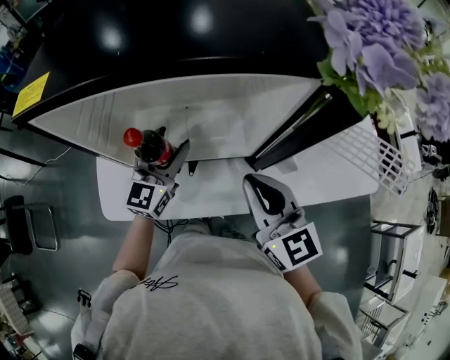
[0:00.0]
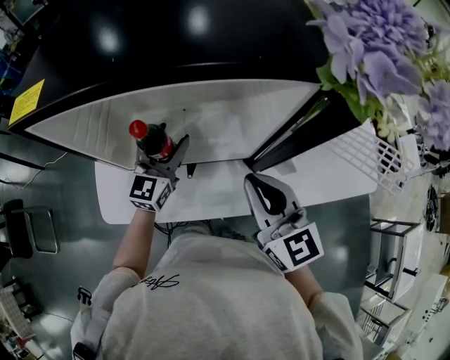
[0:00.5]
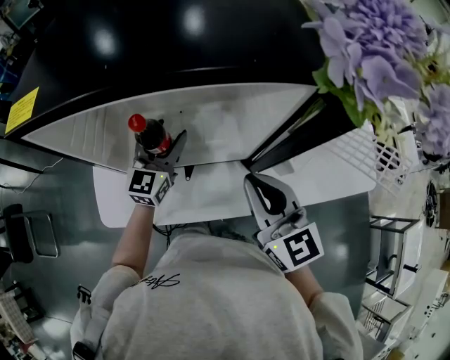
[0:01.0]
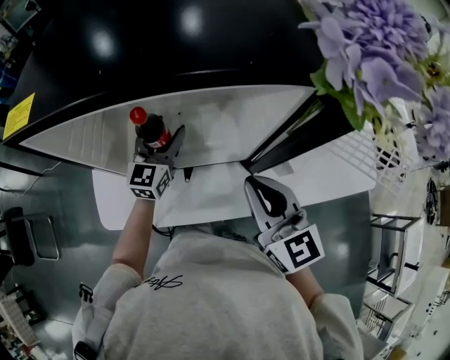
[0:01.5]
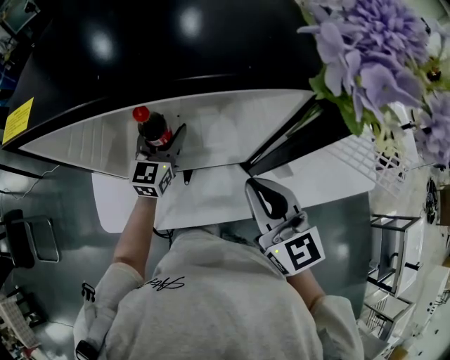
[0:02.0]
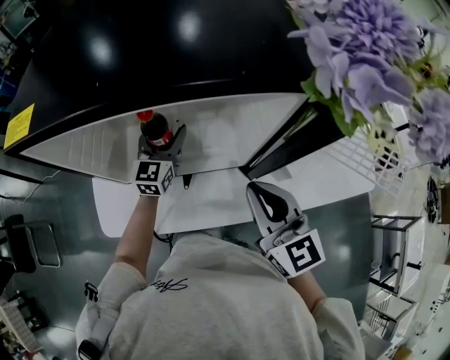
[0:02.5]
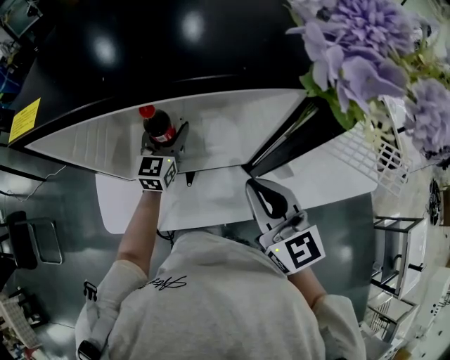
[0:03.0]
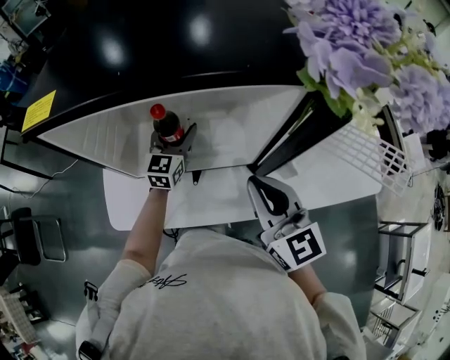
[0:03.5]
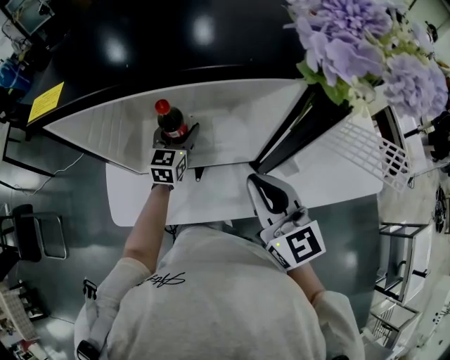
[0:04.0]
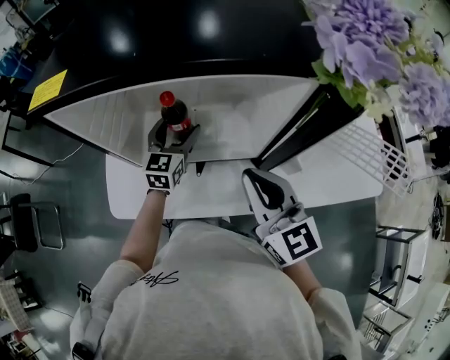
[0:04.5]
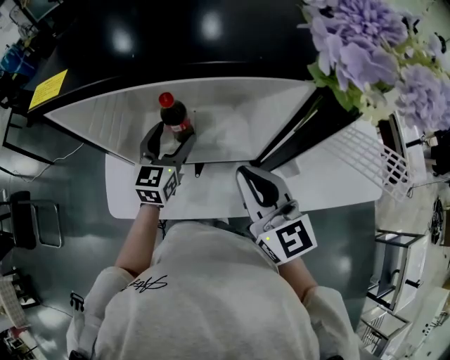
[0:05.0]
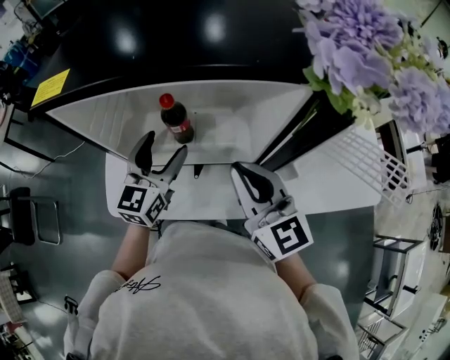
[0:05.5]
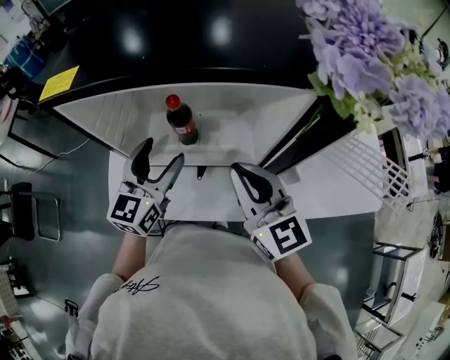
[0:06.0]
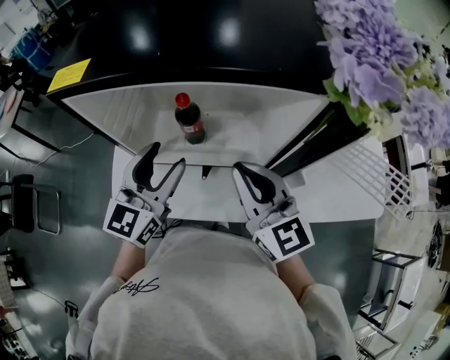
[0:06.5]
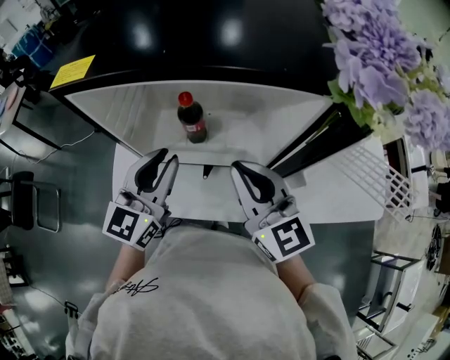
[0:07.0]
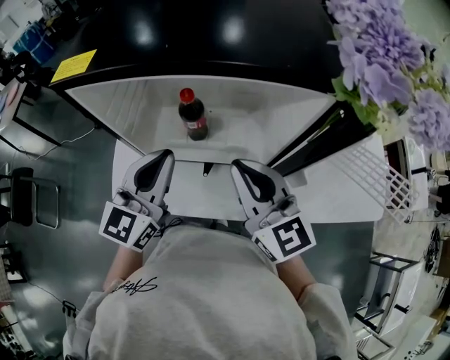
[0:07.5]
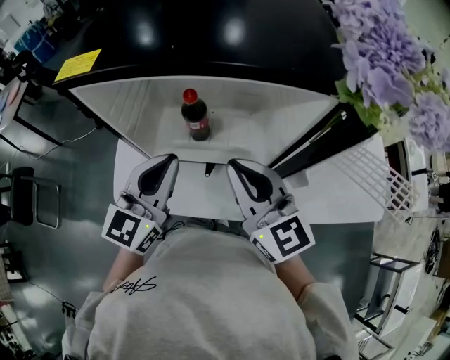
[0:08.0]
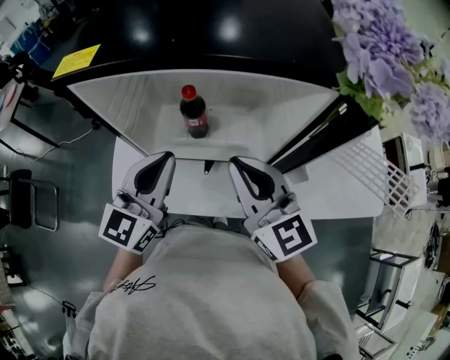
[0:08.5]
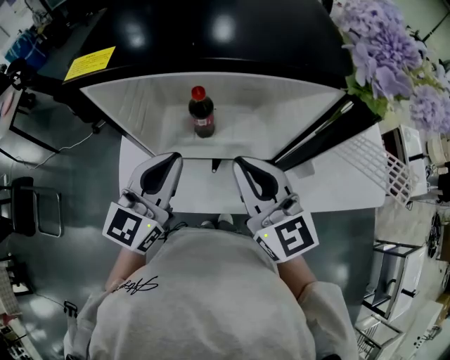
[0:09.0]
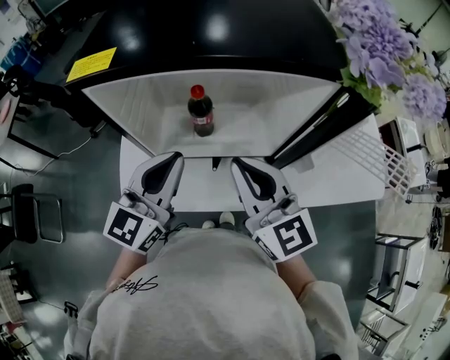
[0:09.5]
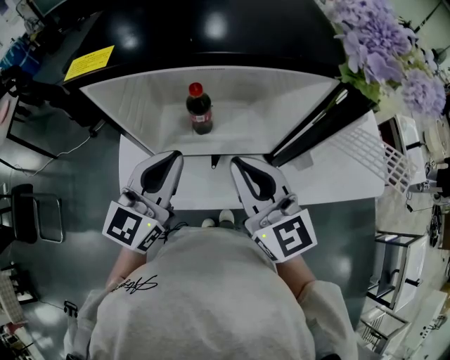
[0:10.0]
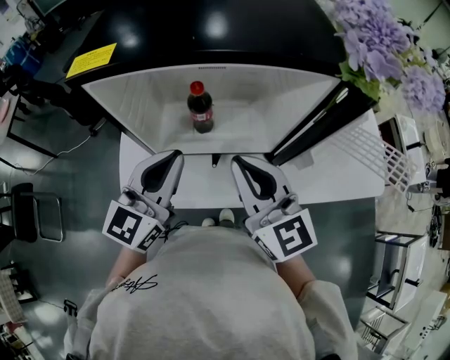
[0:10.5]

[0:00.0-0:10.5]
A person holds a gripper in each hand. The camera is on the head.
0.0 to 2.0 s: The left gripper heads forward, covering approximately 10 cm.
2.0 to 4.0 s: There are only small adjustments of the grippers.
4.0 to 6.5 s: The left gripper shifts some 20 cm upward and backward. Meanwhile the right gripper changes place by roughly 5 cm.
6.5 to 8.5 s: The left gripper closes up.
8.5 to 10.5 s: There are only small adjustments of the grippers.

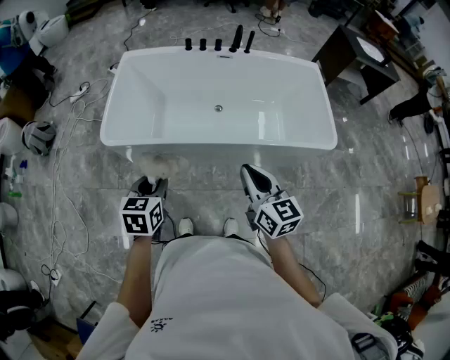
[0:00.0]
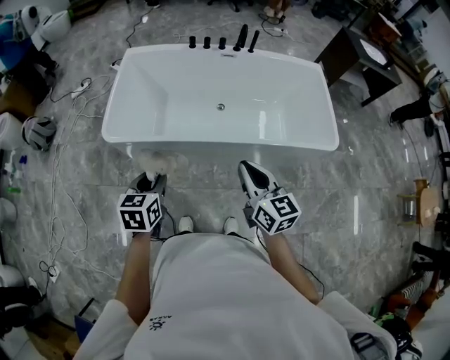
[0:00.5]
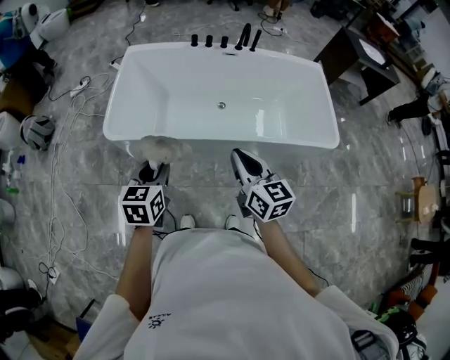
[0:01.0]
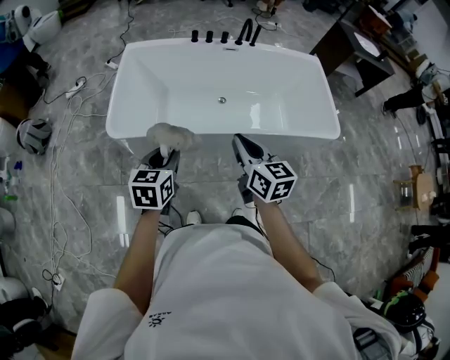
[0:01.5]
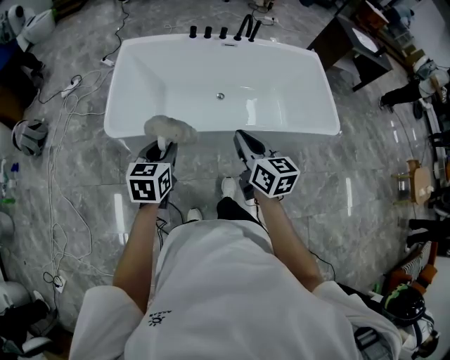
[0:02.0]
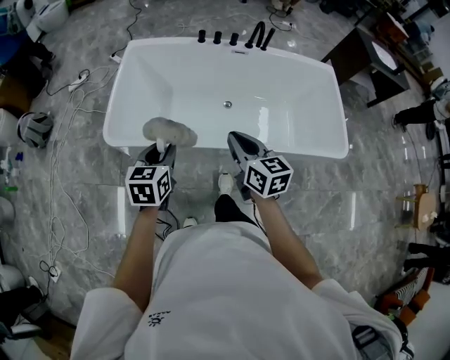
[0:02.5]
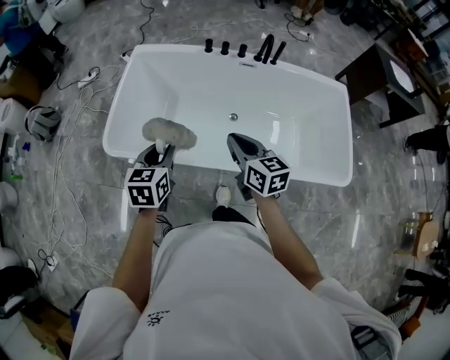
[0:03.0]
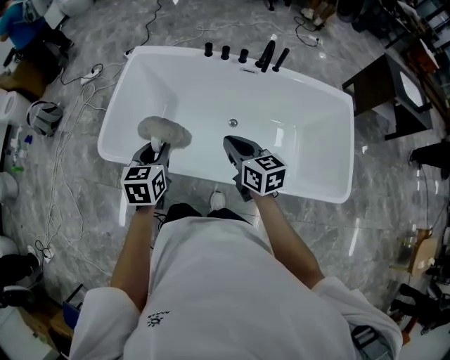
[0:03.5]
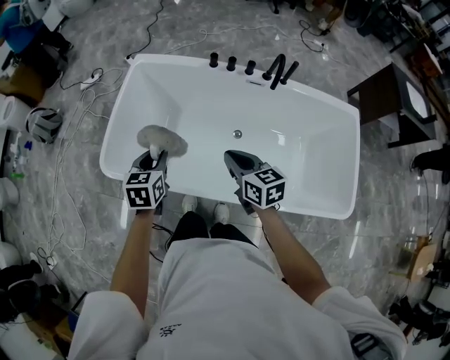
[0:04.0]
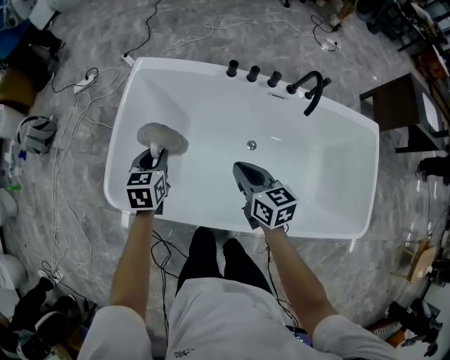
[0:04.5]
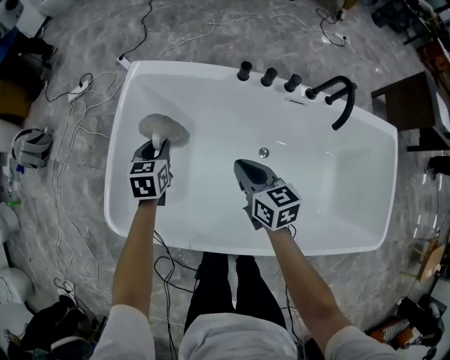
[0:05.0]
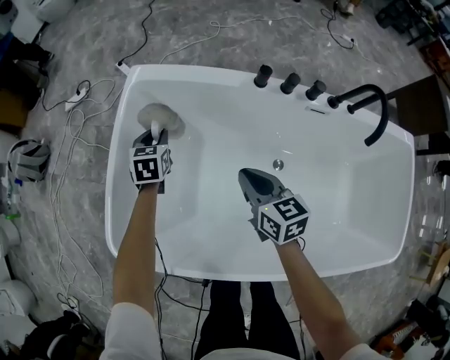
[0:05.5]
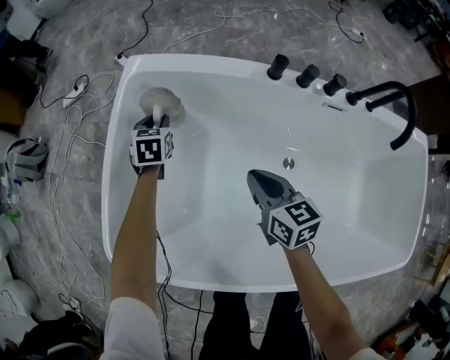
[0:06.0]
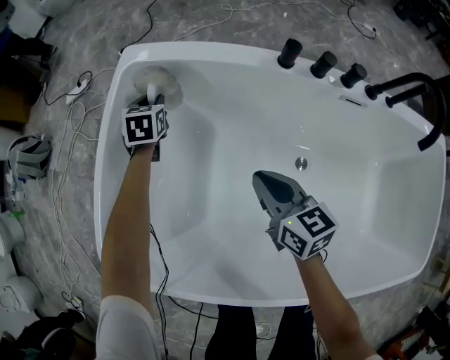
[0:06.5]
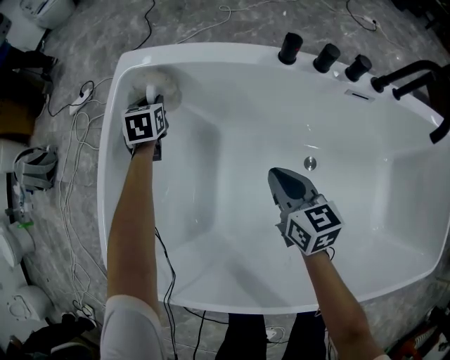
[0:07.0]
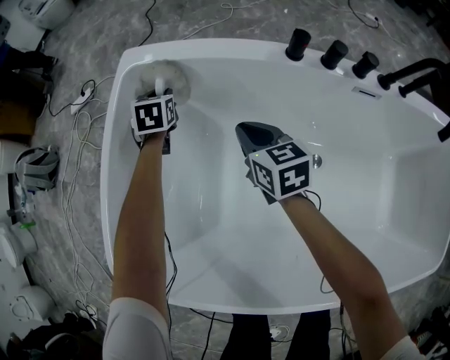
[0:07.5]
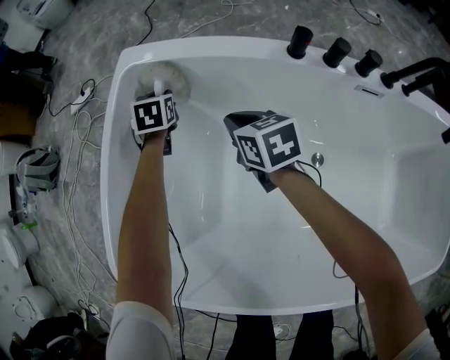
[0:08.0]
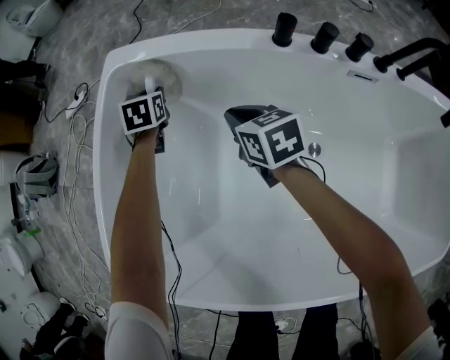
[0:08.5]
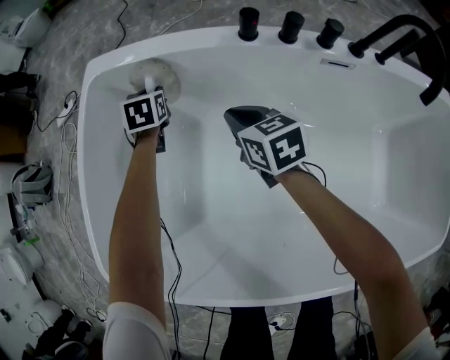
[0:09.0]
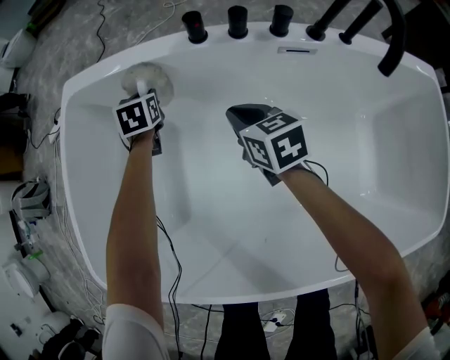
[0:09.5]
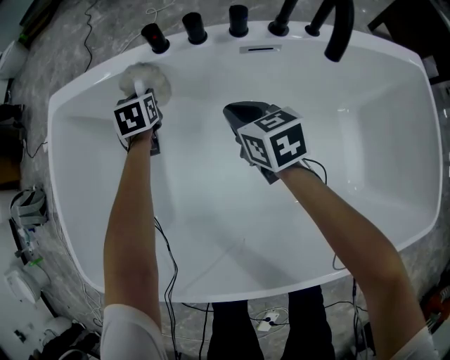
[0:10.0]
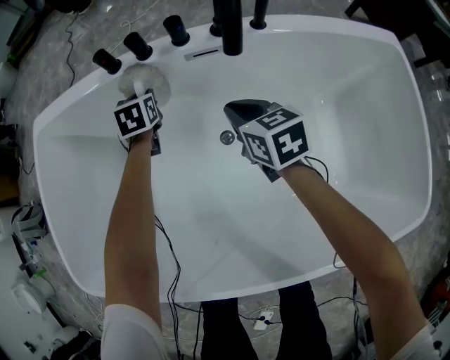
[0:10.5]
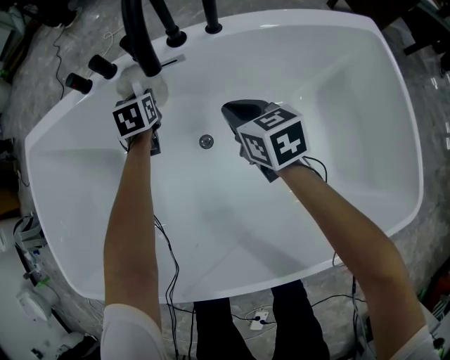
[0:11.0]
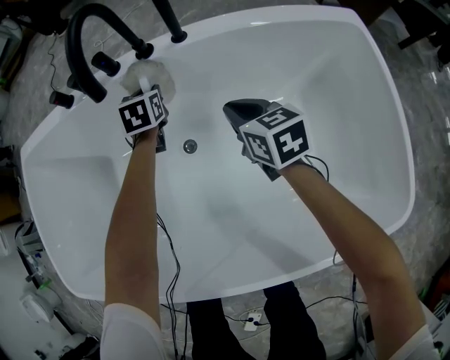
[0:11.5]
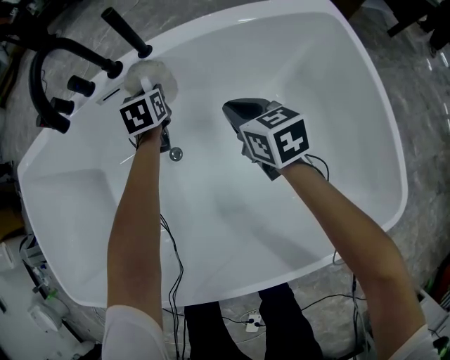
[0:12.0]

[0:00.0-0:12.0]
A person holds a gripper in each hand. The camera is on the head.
0.0 to 2.0 s: Both grippers travel together to the left and forward, approximately 10 cm.
2.0 to 4.0 s: Both grippers travel together forward, about 25 cm. The right gripper rotates about 30 degrees; the left gripper changes its angle by approximately 20 degrees.
4.0 to 6.0 s: Both grippers travel together forward and downward, some 50 cm.
6.0 to 8.0 s: The left gripper is displaced forward and downward by some 10 cm; the right gripper goes some 20 cm forward and downward.
8.0 to 10.0 s: Both grippers move to the right and backward, roughly 30 cm.
10.0 to 12.0 s: Both grippers travel together to the right, roughly 40 cm.

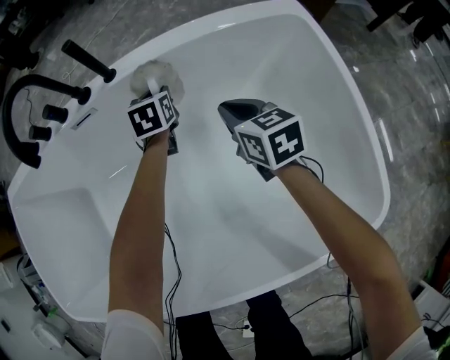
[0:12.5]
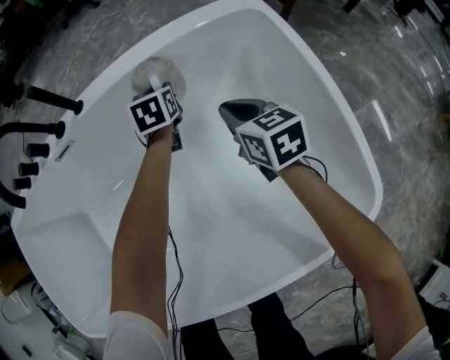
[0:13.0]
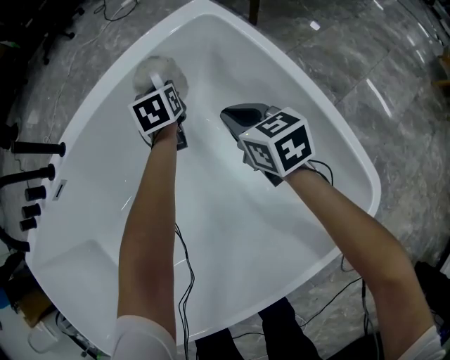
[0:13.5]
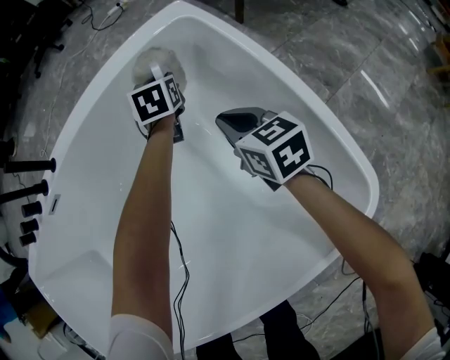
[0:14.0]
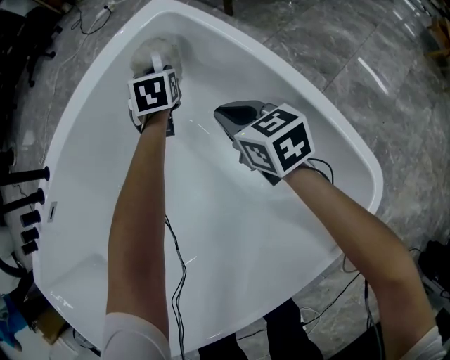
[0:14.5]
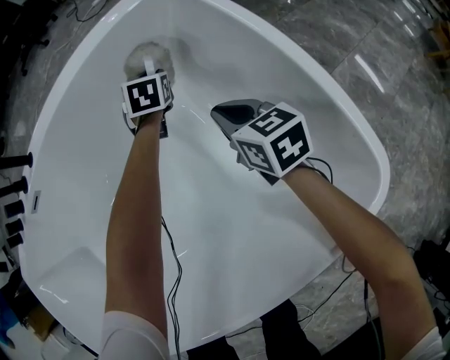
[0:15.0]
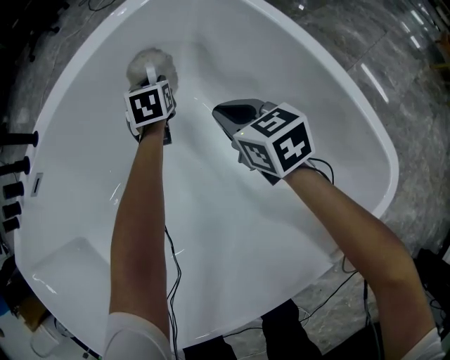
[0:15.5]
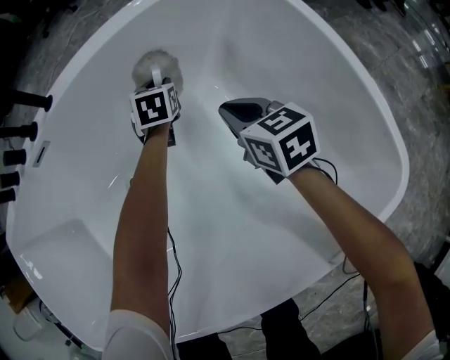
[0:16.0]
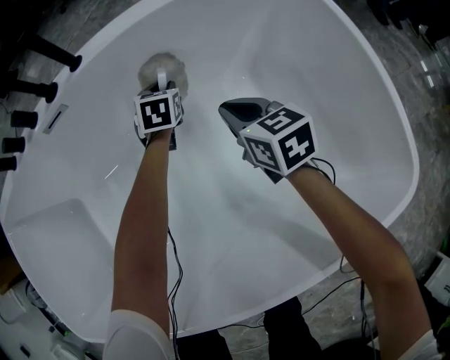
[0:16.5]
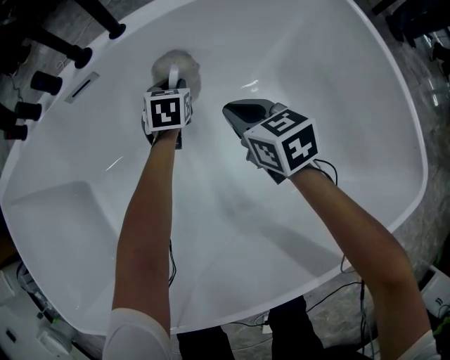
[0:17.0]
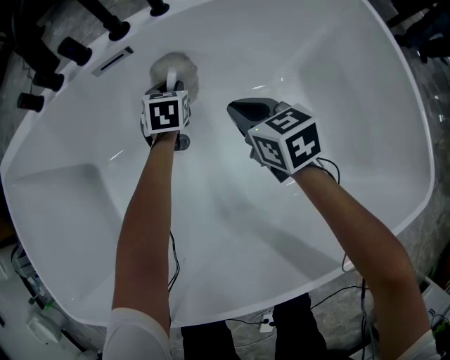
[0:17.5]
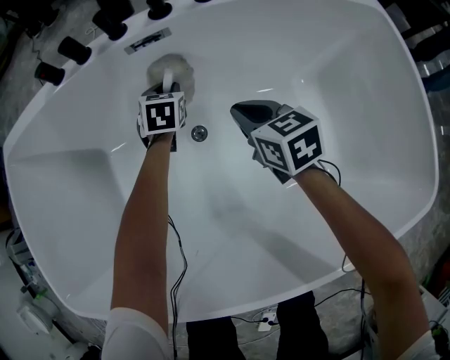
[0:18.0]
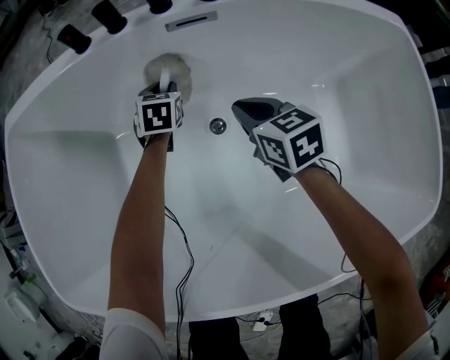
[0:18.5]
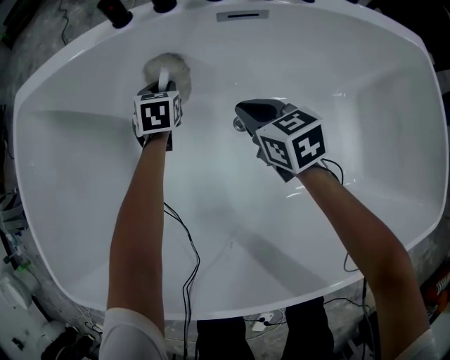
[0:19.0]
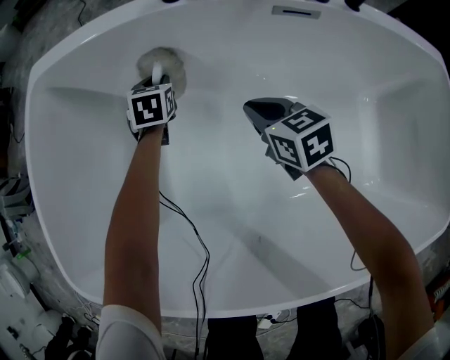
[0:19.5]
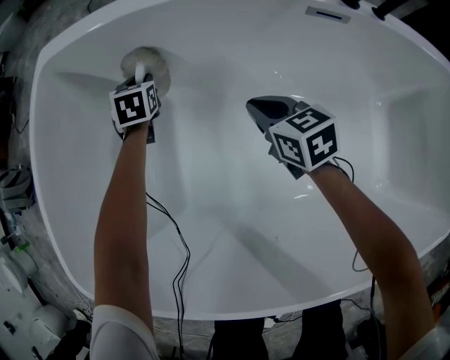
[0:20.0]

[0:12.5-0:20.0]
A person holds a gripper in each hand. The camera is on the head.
12.5 to 14.5 s: The left gripper shifts about 35 cm to the right, and swivels some 30 degrees; the right gripper is displaced to the right by some 20 cm.
14.5 to 16.5 s: Both grippers move to the left, roughly 25 cm.
16.5 to 18.0 s: Both grippers move to the left, some 25 cm.
18.0 to 20.0 s: The left gripper is displaced to the left by some 40 cm; the right gripper heads to the left, covering approximately 25 cm.
